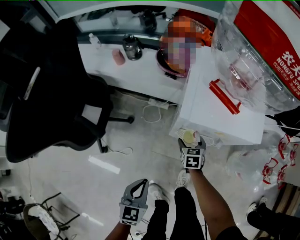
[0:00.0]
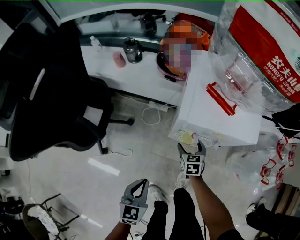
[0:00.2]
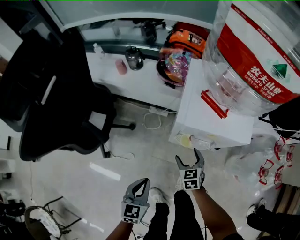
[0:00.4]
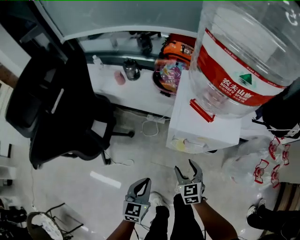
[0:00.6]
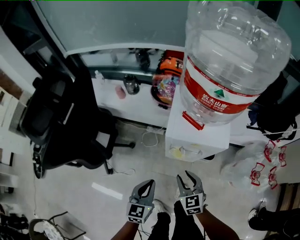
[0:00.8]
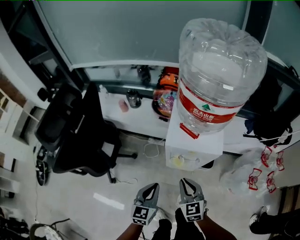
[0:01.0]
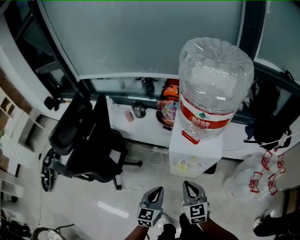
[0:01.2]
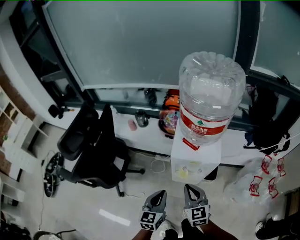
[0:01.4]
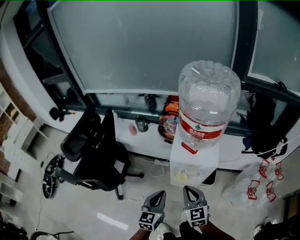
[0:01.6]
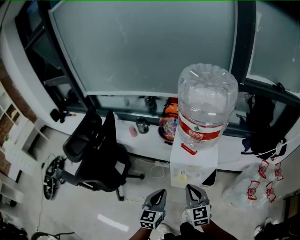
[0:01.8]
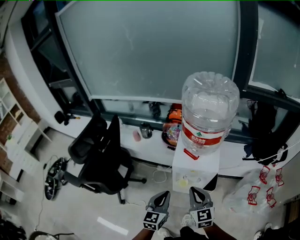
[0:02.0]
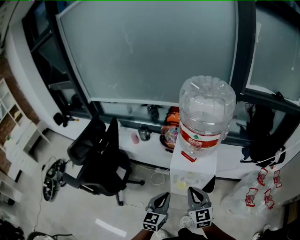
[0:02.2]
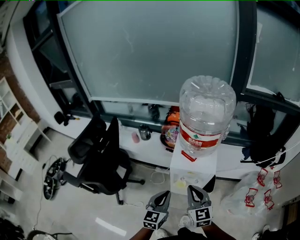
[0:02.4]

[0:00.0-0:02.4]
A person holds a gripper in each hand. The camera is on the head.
0:00.0 to 0:01.2: The left gripper heads upward, covering about 20 cm; the right gripper is displaced upward and backward by roughly 40 cm, changes its angle by roughly 30 degrees, and closes.
0:01.2 to 0:02.4: Both grippers move upward, roughly 10 cm.

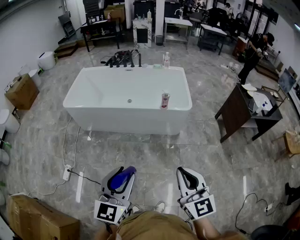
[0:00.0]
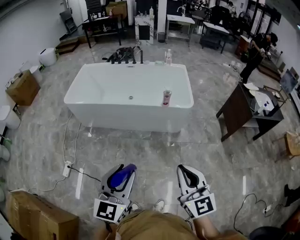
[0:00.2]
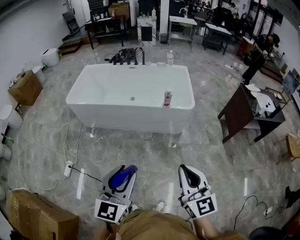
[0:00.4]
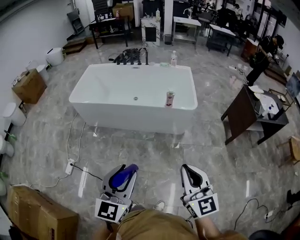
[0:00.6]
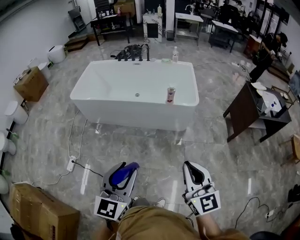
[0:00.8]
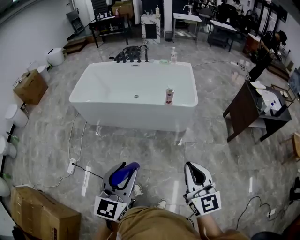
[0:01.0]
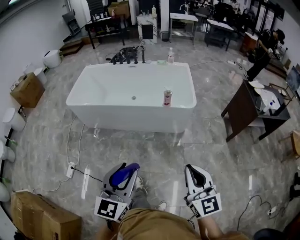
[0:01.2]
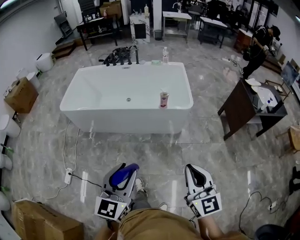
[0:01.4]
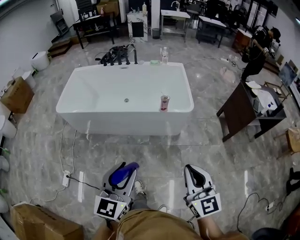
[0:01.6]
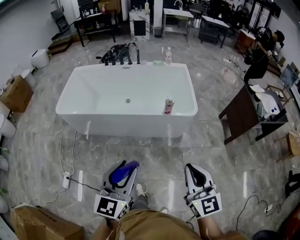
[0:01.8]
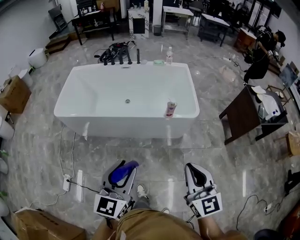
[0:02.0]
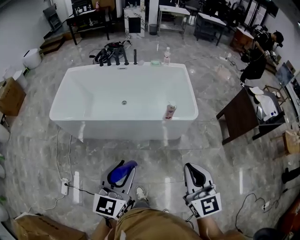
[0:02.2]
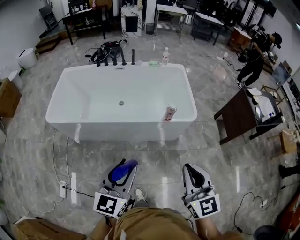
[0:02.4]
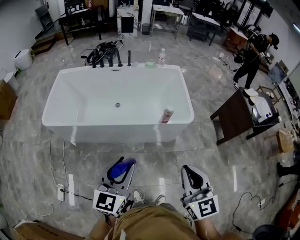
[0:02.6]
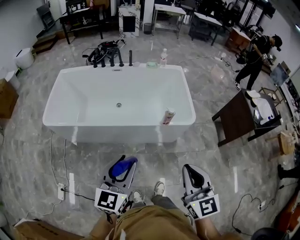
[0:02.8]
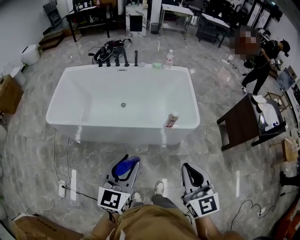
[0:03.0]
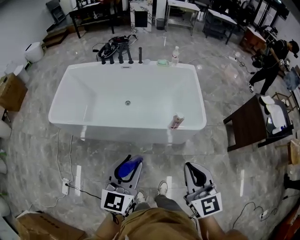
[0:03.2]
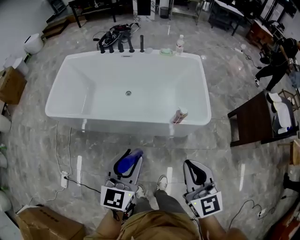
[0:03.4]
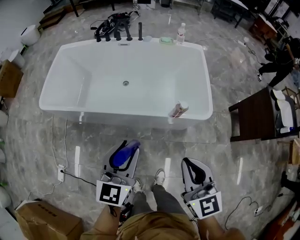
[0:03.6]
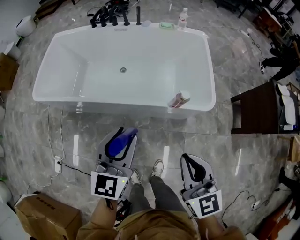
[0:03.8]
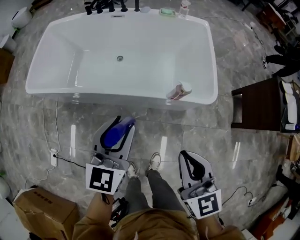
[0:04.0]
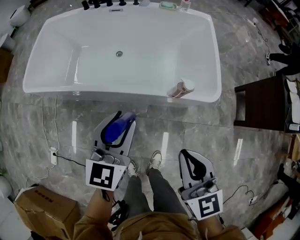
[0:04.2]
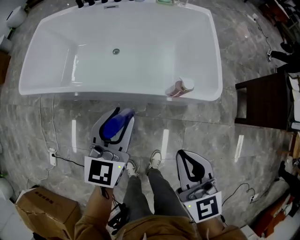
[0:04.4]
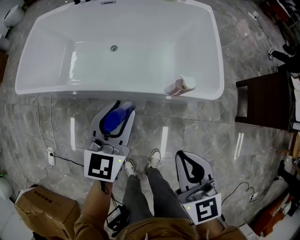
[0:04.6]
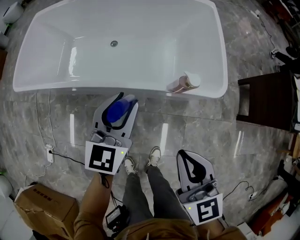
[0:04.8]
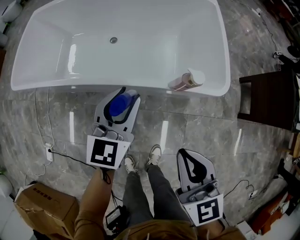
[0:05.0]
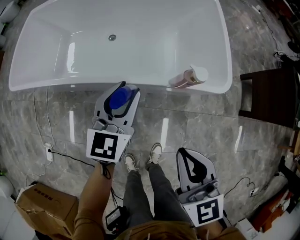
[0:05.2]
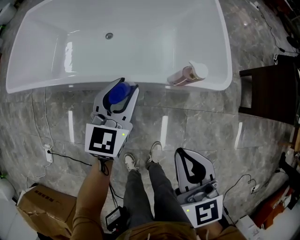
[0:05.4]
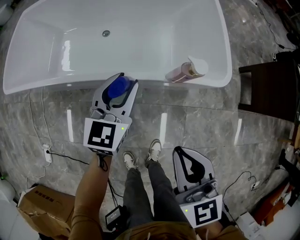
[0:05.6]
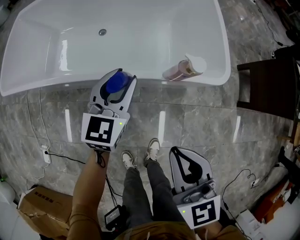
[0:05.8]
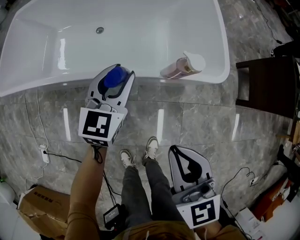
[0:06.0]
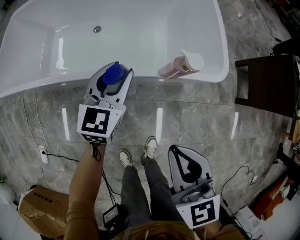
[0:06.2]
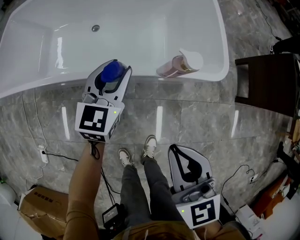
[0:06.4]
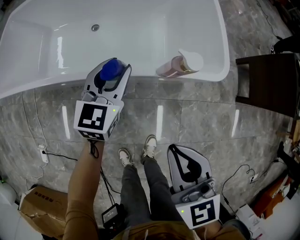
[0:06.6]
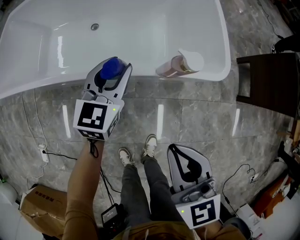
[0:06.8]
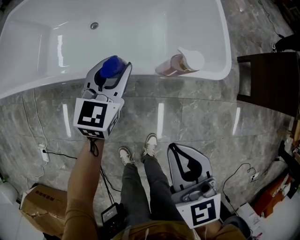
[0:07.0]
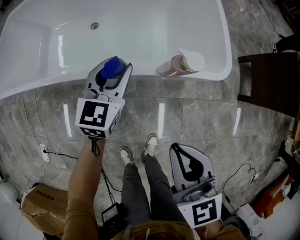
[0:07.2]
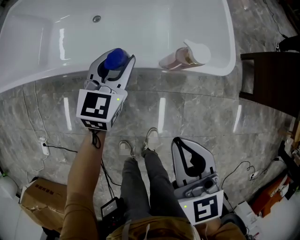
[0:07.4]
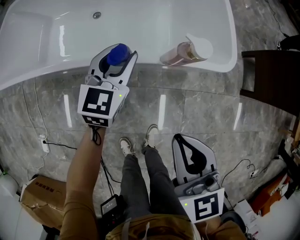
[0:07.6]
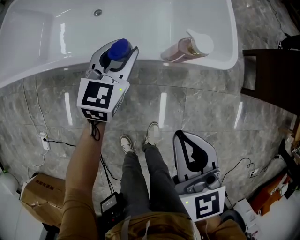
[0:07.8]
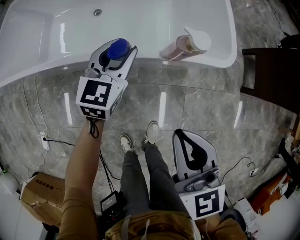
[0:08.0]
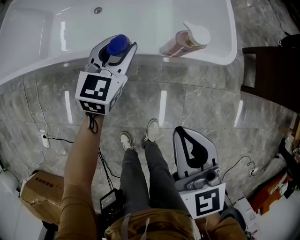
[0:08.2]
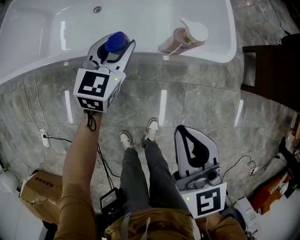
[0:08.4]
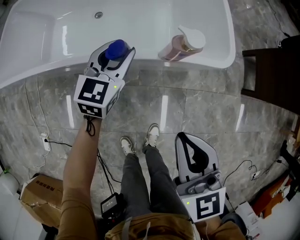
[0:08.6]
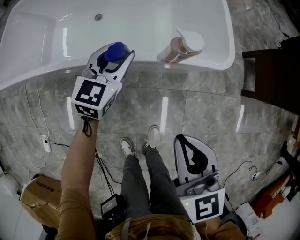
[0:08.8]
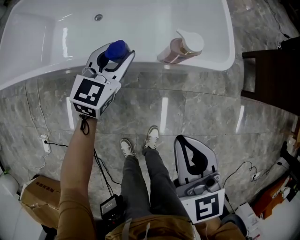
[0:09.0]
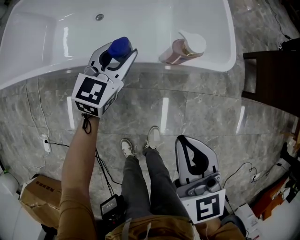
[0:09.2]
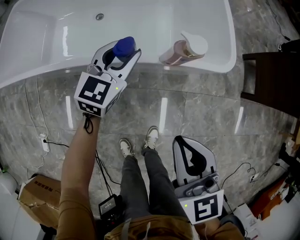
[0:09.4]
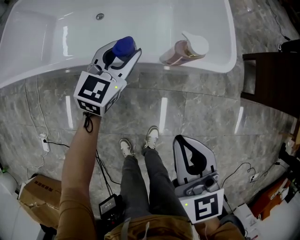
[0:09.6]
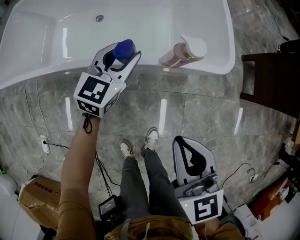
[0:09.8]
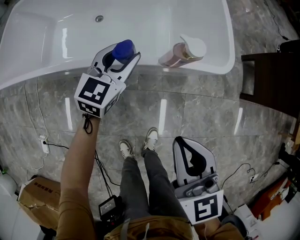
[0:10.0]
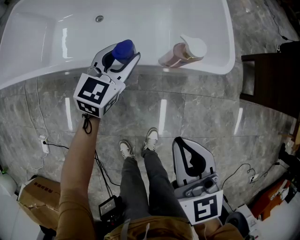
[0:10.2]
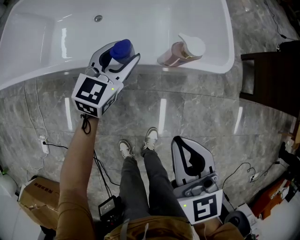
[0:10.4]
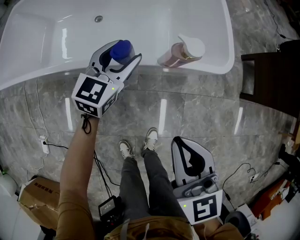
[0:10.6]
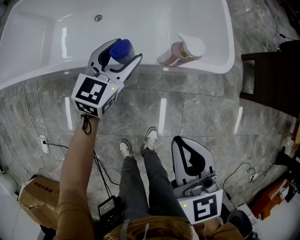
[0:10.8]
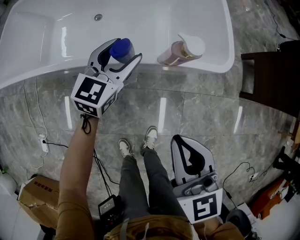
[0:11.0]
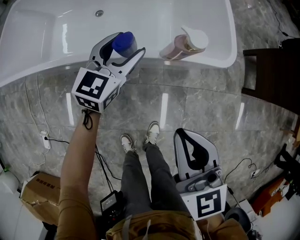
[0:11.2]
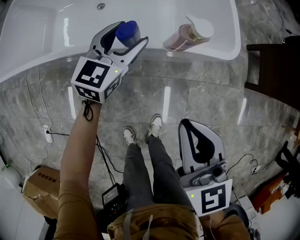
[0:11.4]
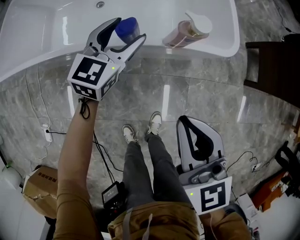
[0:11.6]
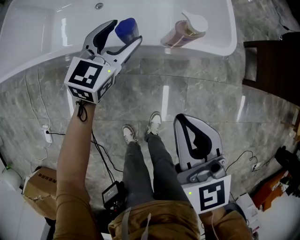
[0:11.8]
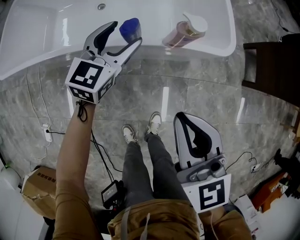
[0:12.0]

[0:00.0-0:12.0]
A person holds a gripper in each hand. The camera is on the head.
0:00.0 to 0:01.6: The two grippers go roughly 15 cm forward.
0:01.6 to 0:03.0: The left gripper shifts roughly 25 cm forward. Meanwhile the right gripper is displaced forward and to the left by approximately 25 cm.
0:03.0 to 0:04.4: The right gripper is displaced downward and forward by approximately 25 cm. The left gripper heads forward and downward, covering about 30 cm.
0:04.4 to 0:06.0: The left gripper moves downward and forward, roughly 15 cm. Meanwhile the right gripper moves downward, some 10 cm.
0:06.0 to 0:07.6: The left gripper ends up roughly 5 cm from where it was.
0:07.6 to 0:09.0: The grippers make only small movements.
0:09.0 to 0:10.4: The two grippers keep their place.
0:10.4 to 0:12.0: The left gripper ends up about 5 cm from where it was.

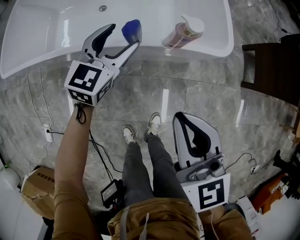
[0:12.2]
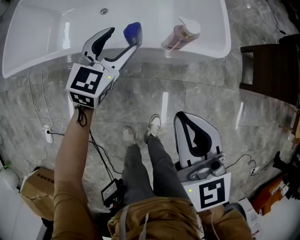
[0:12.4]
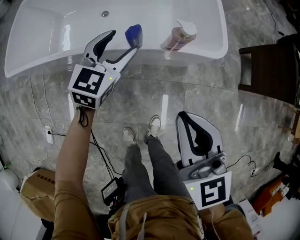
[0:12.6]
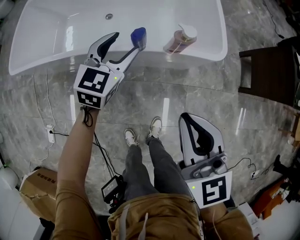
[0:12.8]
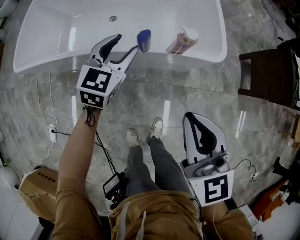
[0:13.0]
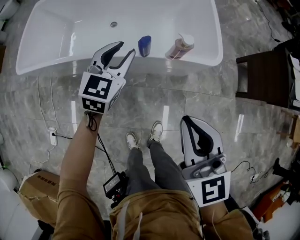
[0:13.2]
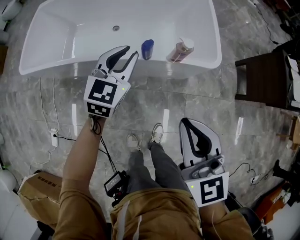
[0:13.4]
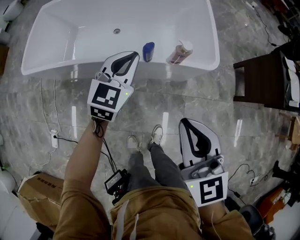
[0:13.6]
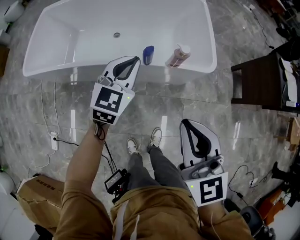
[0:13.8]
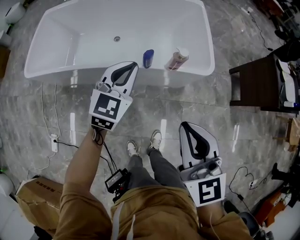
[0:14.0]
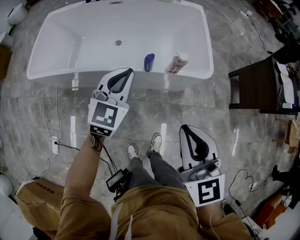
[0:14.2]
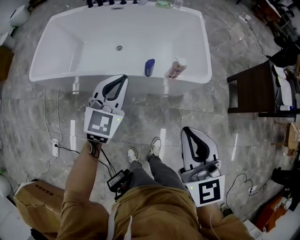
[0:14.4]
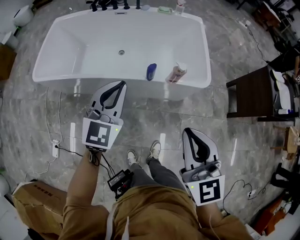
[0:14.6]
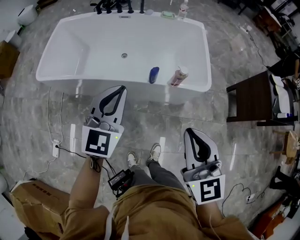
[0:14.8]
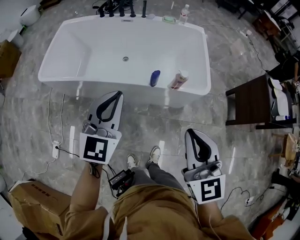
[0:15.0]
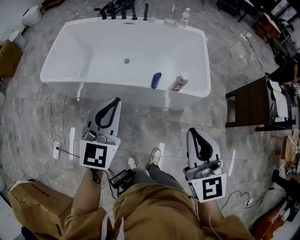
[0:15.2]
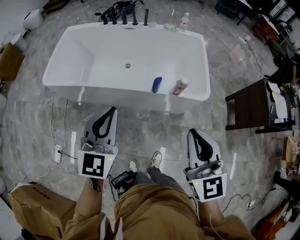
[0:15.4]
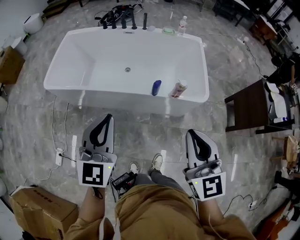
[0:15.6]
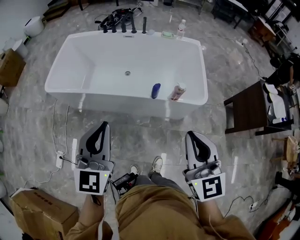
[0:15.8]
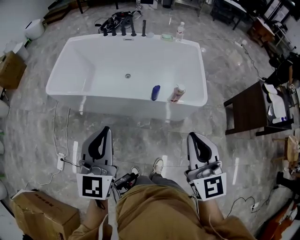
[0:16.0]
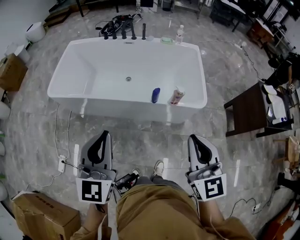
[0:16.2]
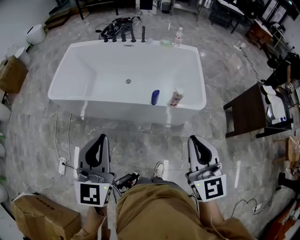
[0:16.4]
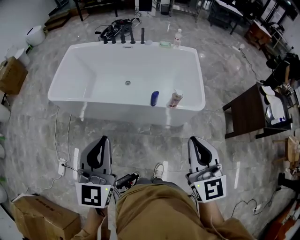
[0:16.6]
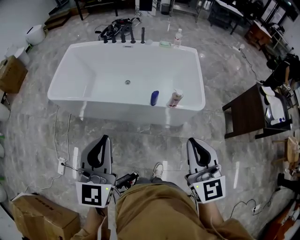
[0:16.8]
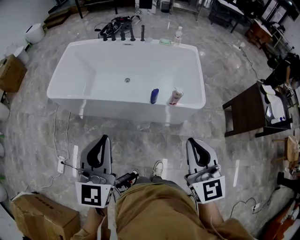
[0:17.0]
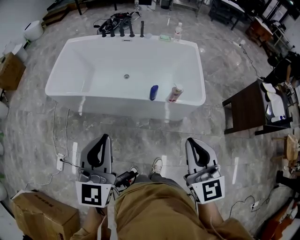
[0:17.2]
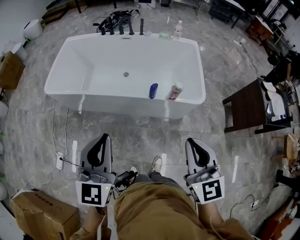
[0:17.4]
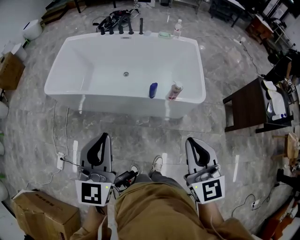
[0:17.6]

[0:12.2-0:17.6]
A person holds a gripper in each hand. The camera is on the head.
0:12.2 to 0:13.6: Both grippers move upward and backward, roughly 15 cm. The left gripper closes up.
0:13.6 to 0:15.0: The right gripper shifts roughly 10 cm upward, while the left gripper travels upward, backward and to the left by some 20 cm.
0:15.0 to 0:16.2: The left gripper heads backward, upward and to the left, covering about 15 cm.
0:16.2 to 0:17.6: The grippers stay close to where they were, moving slightly.

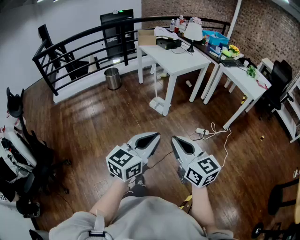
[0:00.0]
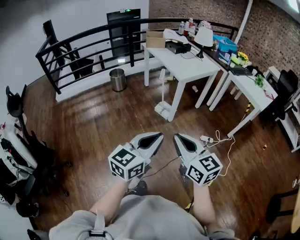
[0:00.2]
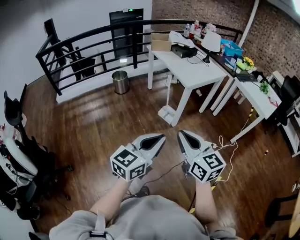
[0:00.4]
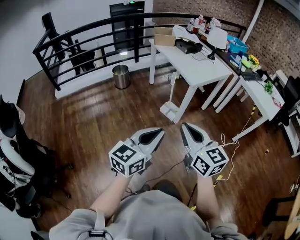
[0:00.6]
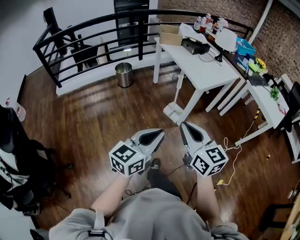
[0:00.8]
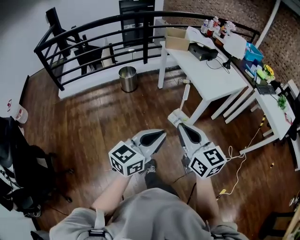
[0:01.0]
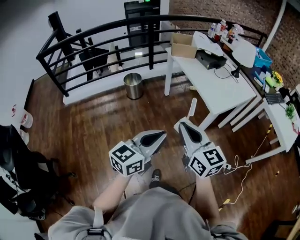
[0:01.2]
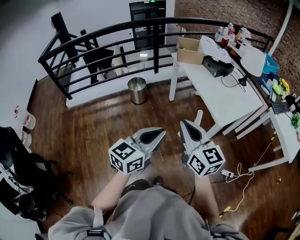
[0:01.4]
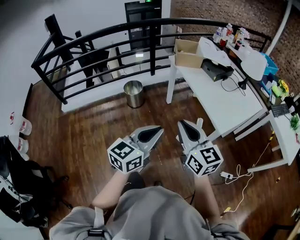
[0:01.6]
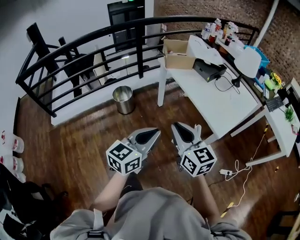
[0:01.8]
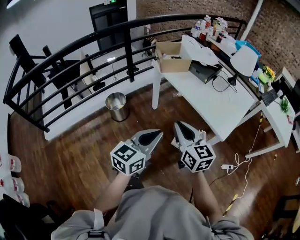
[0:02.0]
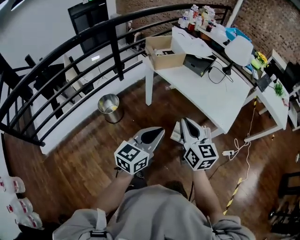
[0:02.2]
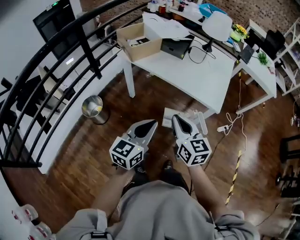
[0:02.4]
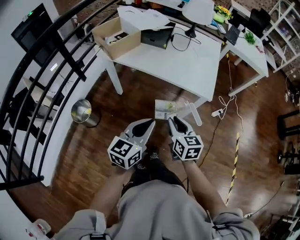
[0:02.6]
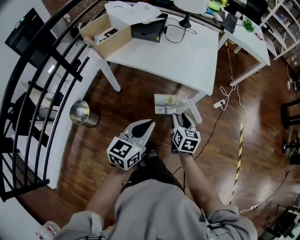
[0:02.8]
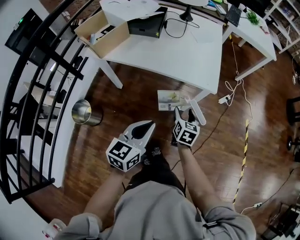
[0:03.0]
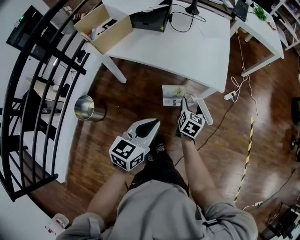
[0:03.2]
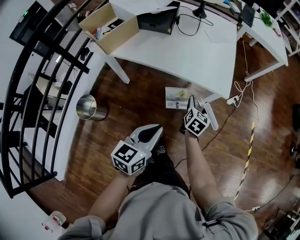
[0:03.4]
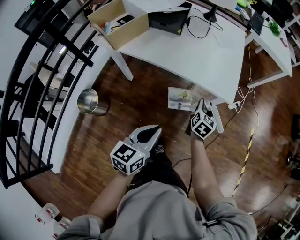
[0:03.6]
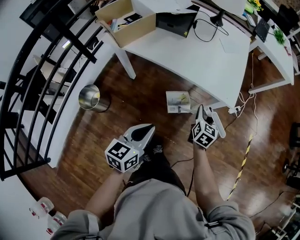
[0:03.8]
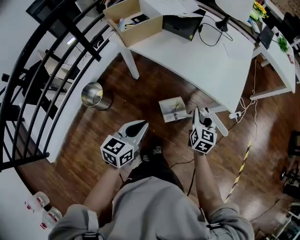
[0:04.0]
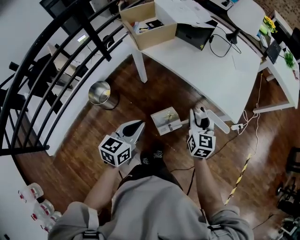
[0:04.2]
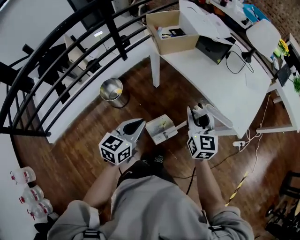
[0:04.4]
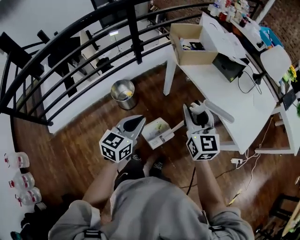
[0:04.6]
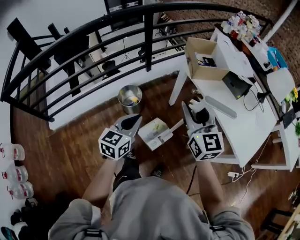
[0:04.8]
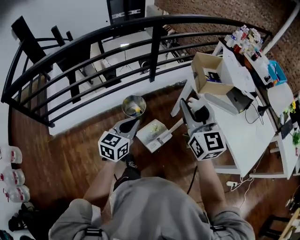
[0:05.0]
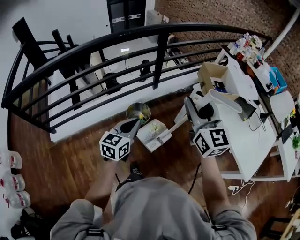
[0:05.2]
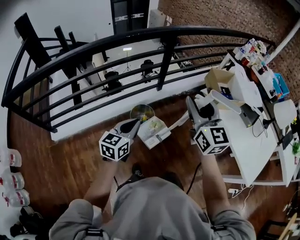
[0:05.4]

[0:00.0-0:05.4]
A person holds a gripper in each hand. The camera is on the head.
0:00.0 to 0:01.4: The pair of grippers is taken forward and to the left, roughly 60 cm.
0:01.4 to 0:02.8: The right gripper travels downward by about 25 cm, angles its fingers downward, by about 30 degrees, and opens up. The left gripper ends up some 30 cm from where it was, and swivels some 40 degrees.
0:02.8 to 0:04.0: The right gripper shifts roughly 10 cm forward, and opens, then closes again. Meanwhile the left gripper is displaced to the left and downward by approximately 10 cm.
0:04.0 to 0:05.4: Both grippers are carried about 50 cm. The right gripper turns by some 60 degrees; the left gripper swivels approximately 40 degrees.
